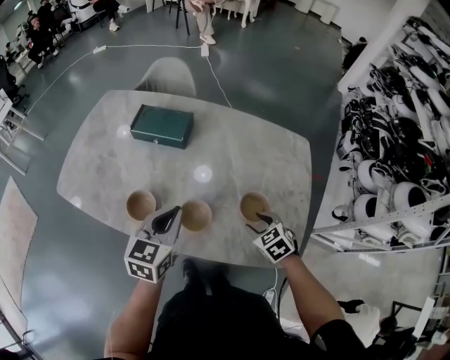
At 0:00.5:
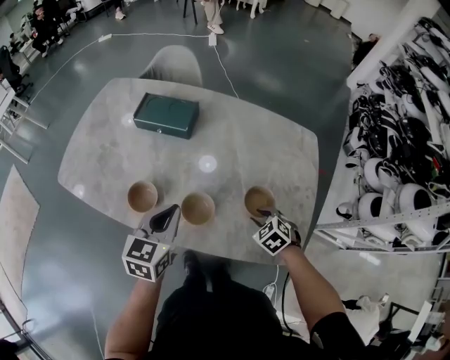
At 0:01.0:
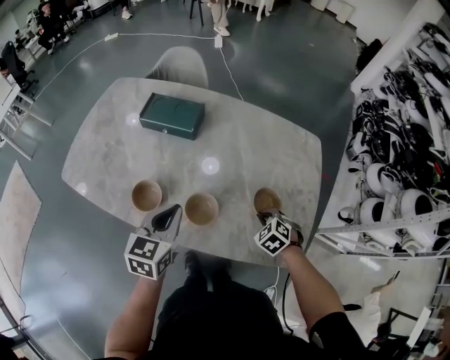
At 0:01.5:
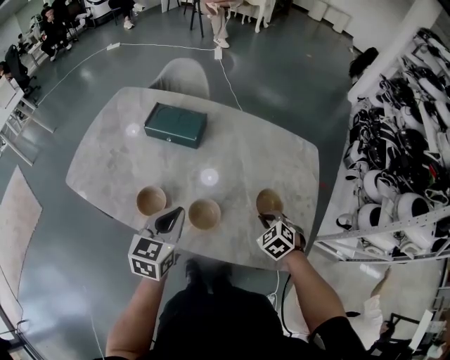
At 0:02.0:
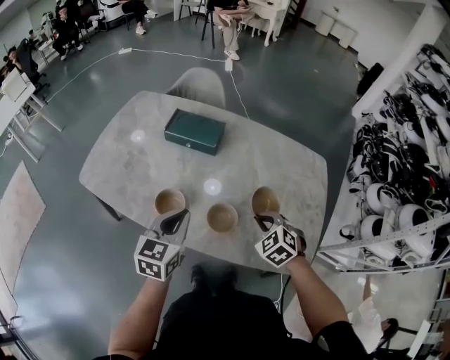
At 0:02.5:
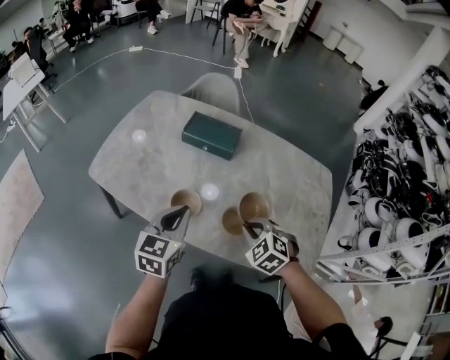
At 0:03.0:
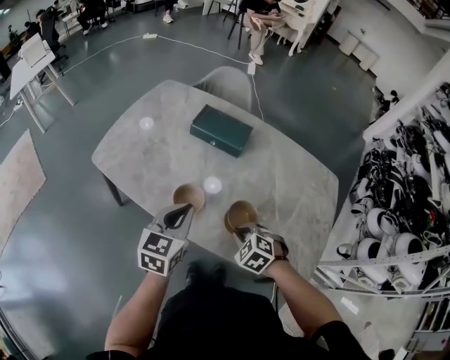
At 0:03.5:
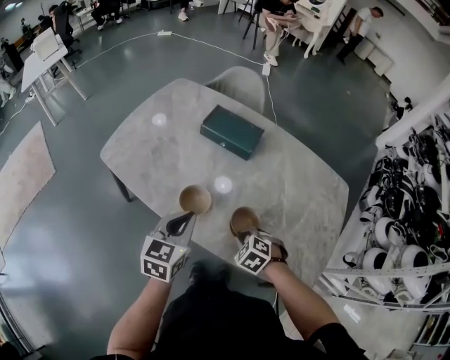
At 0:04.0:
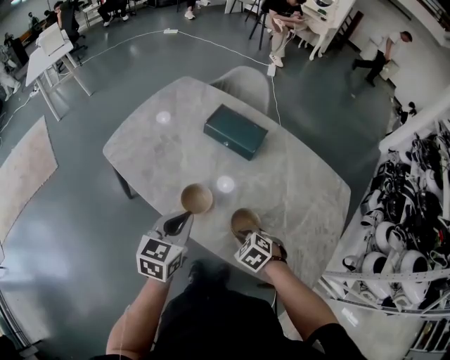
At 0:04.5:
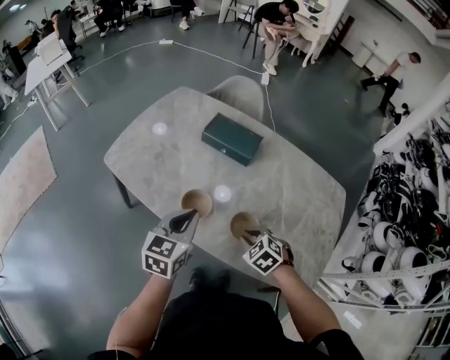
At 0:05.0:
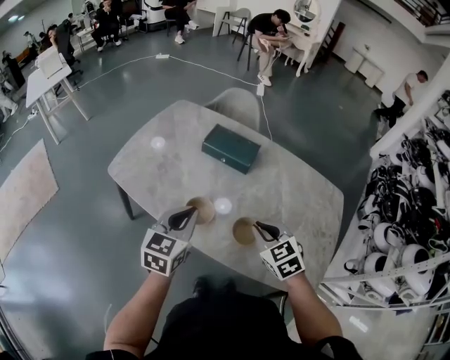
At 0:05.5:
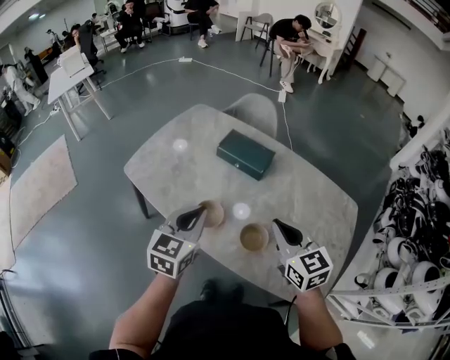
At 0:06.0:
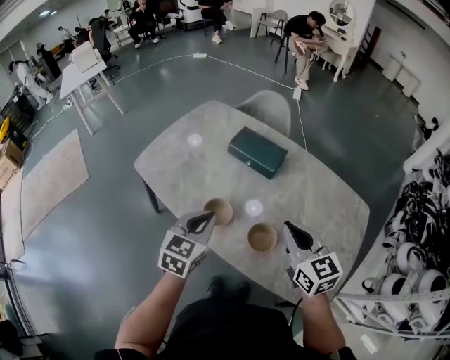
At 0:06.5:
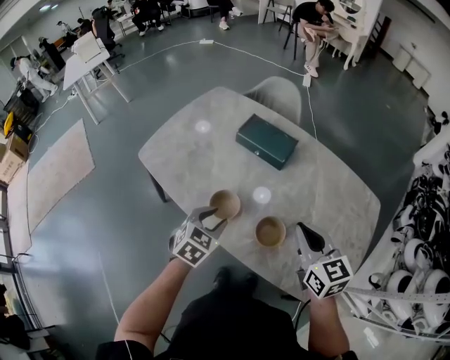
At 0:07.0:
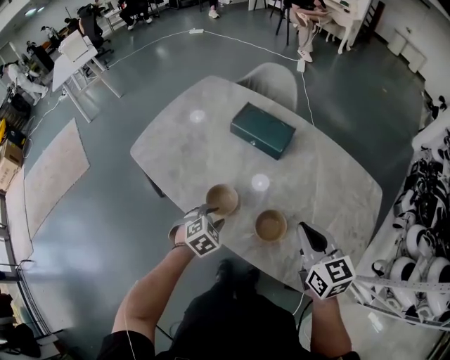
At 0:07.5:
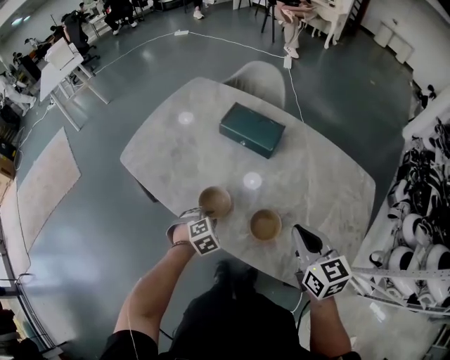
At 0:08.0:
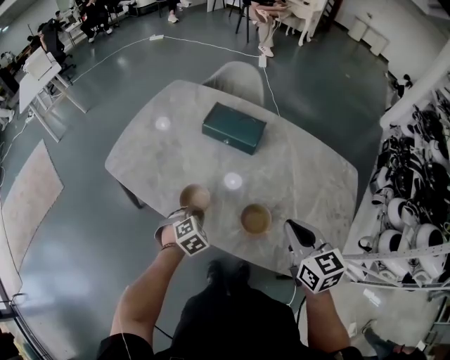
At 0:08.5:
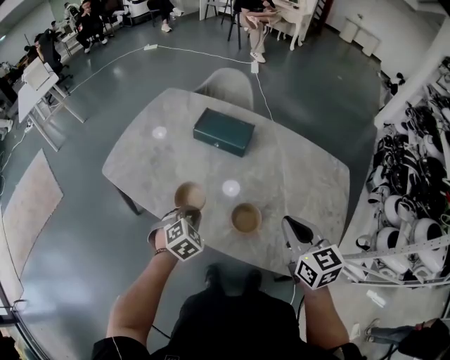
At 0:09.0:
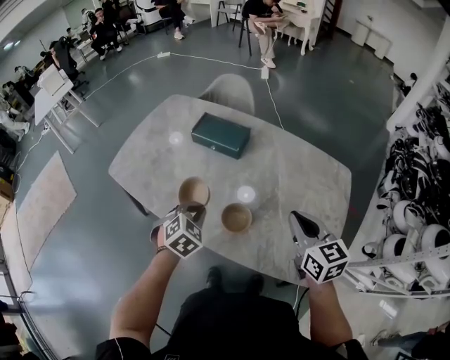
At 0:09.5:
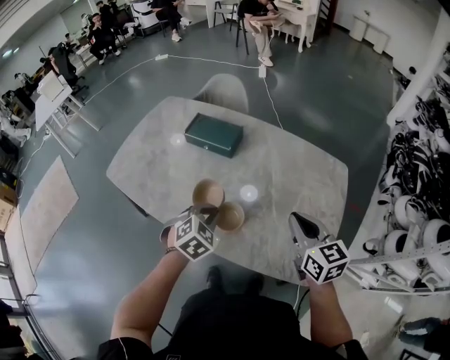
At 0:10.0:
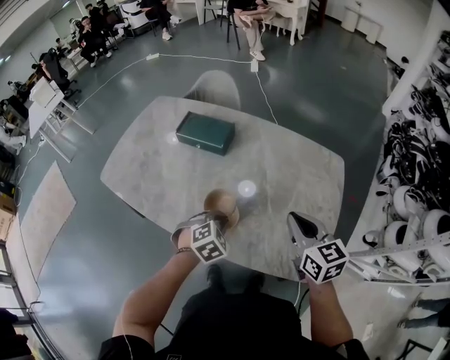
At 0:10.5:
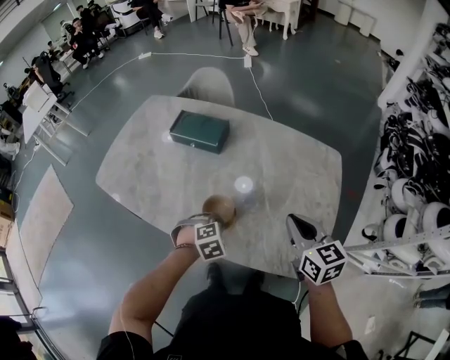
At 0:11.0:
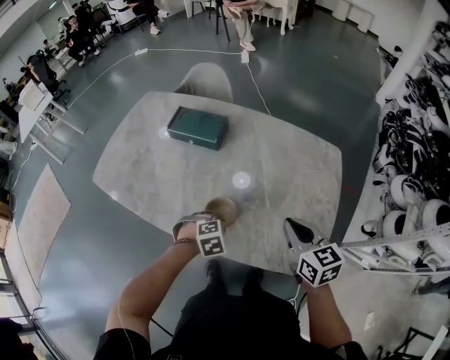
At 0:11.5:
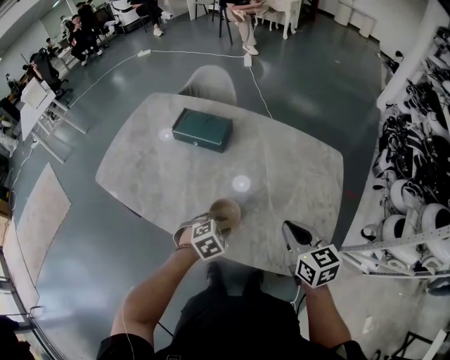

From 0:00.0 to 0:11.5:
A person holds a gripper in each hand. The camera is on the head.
From 0:00.0 to 0:02.0: The right gripper travels to the left and upward by approximately 10 cm, turns by roughly 20 degrees, and closes its fingers. The left gripper goes roughly 10 cm to the left.
From 0:02.0 to 0:04.0: The left gripper moves to the left, approximately 10 cm. Meanwhile the right gripper heads to the left and downward, covering roughly 15 cm, and swivels approximately 20 degrees.
From 0:04.0 to 0:06.0: The right gripper travels upward by about 25 cm, and tips its fingers upward by some 50 degrees.
From 0:06.0 to 0:07.5: The left gripper is displaced downward by approximately 25 cm, points its fingers about 40 degrees further downward, and opens its fingers, while the right gripper travels downward by about 5 cm.
From 0:07.5 to 0:09.5: The left gripper is displaced to the right and upward by approximately 25 cm, and closes its fingers; the right gripper travels to the right by about 15 cm.
From 0:09.5 to 0:11.5: The left gripper travels downward and to the right by about 10 cm, rotates roughly 20 degrees, and opens its fingers. The right gripper is displaced downward by some 5 cm.

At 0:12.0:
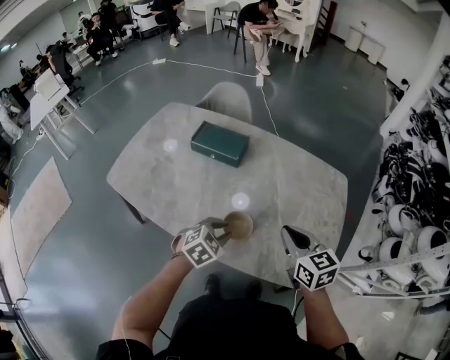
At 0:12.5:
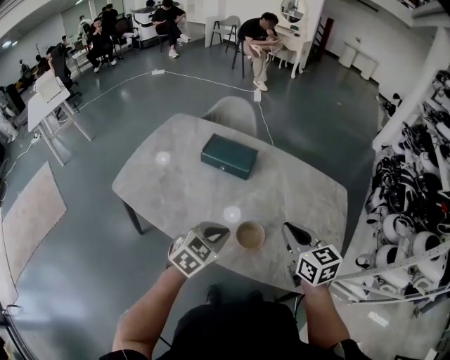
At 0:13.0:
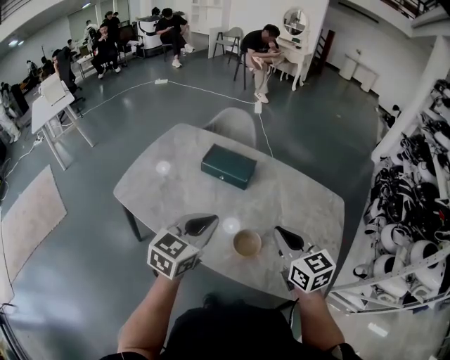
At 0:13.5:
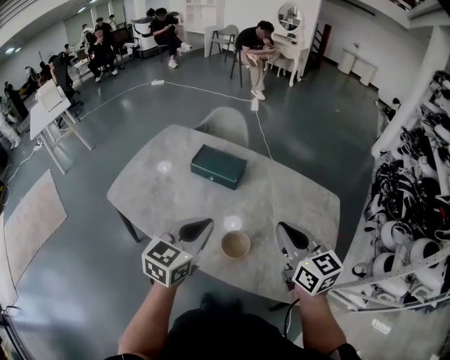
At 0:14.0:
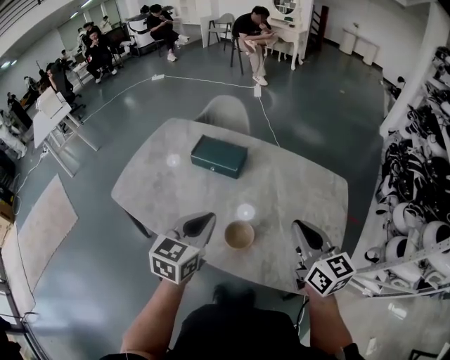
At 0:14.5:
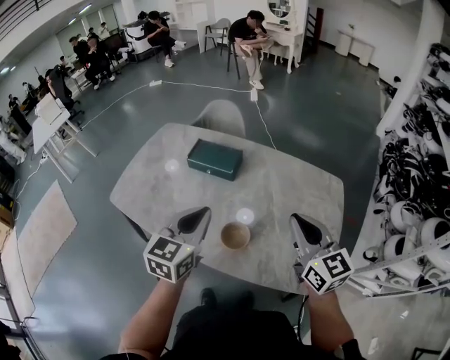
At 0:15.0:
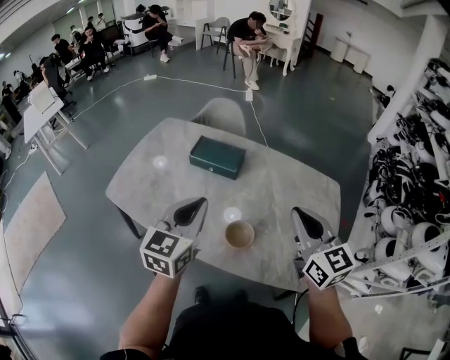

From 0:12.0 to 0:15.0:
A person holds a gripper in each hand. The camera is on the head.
From 0:12.0 to 0:13.5: The left gripper goes about 20 cm upward, tilts its fingers approximately 40 degrees upward, and closes up, while the right gripper goes some 10 cm upward.

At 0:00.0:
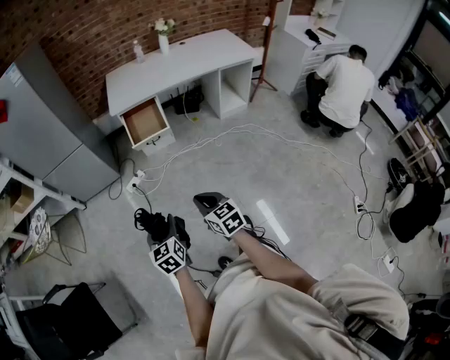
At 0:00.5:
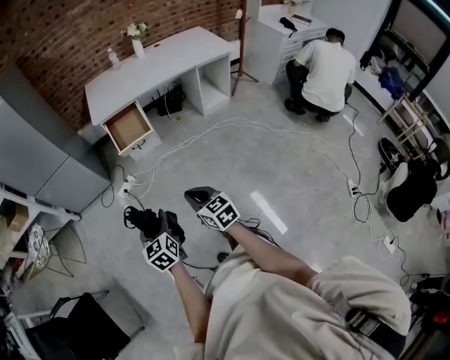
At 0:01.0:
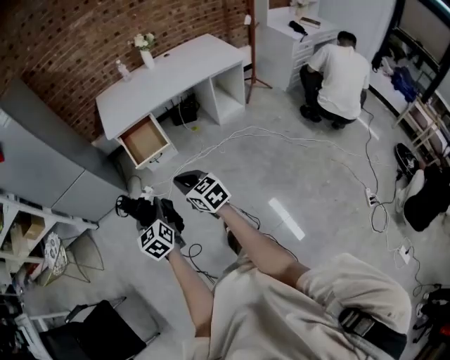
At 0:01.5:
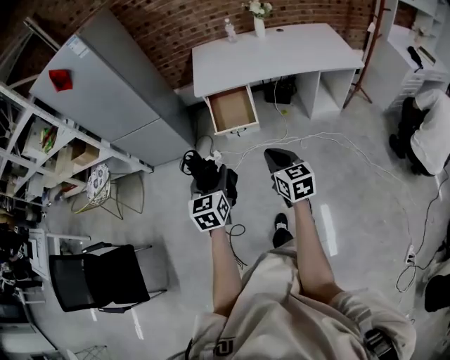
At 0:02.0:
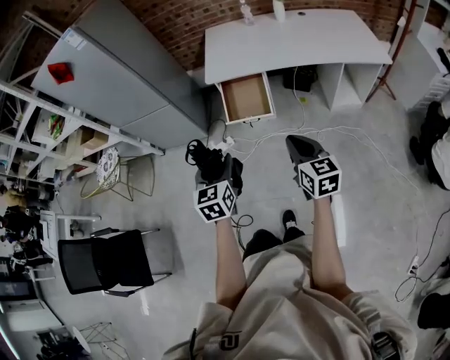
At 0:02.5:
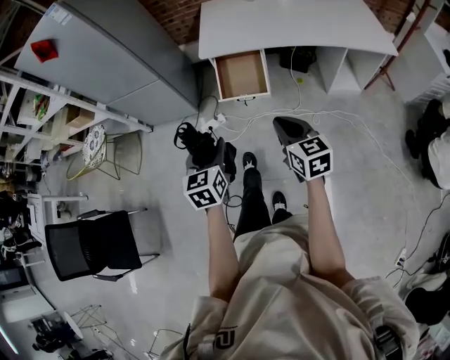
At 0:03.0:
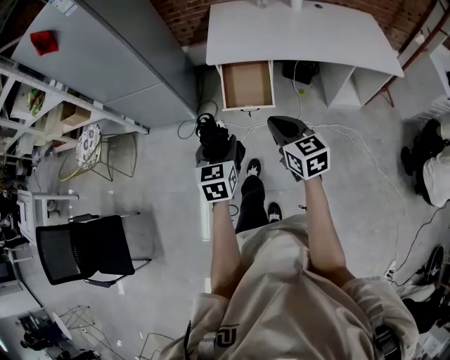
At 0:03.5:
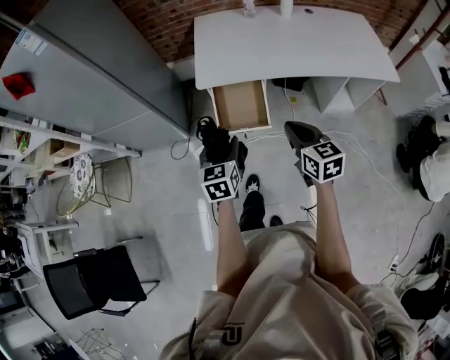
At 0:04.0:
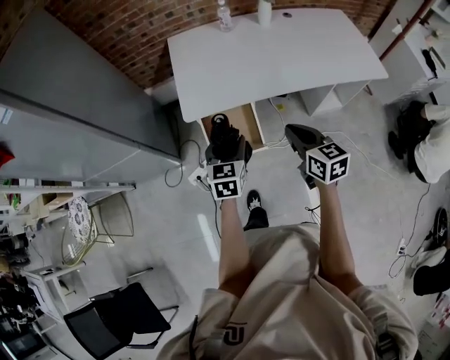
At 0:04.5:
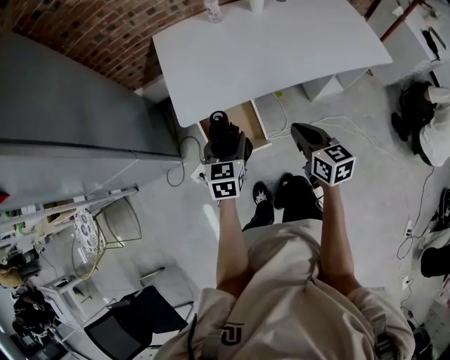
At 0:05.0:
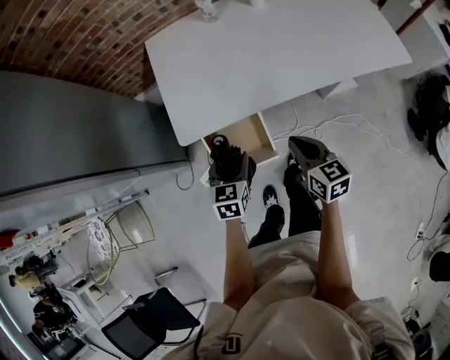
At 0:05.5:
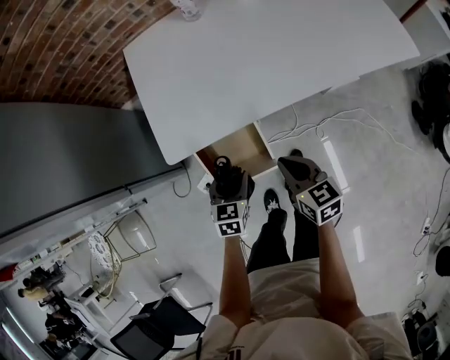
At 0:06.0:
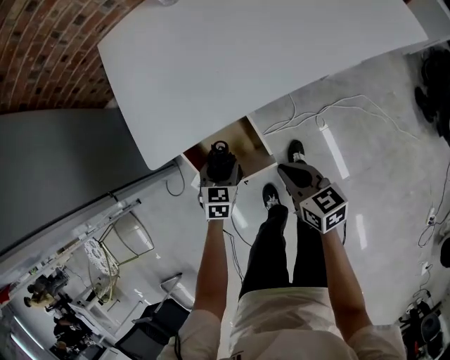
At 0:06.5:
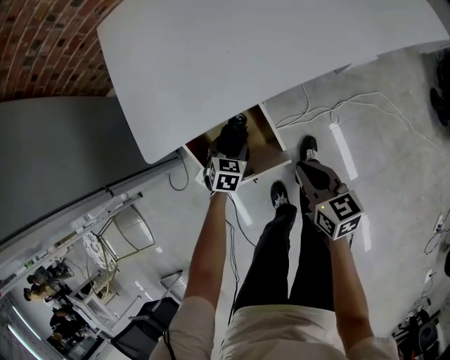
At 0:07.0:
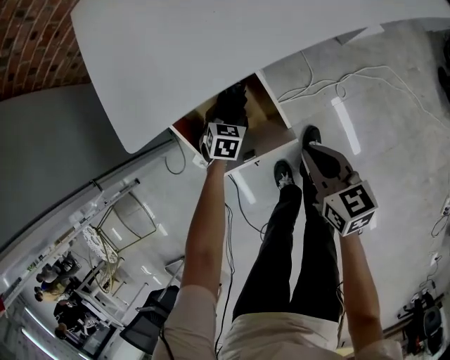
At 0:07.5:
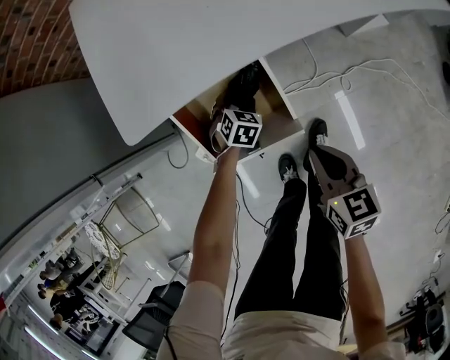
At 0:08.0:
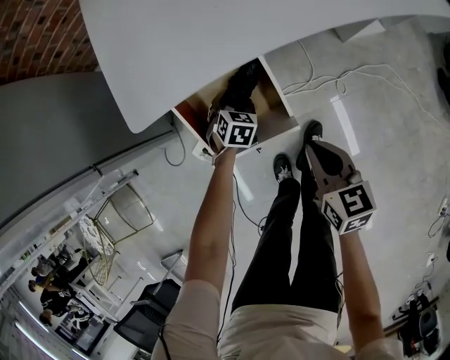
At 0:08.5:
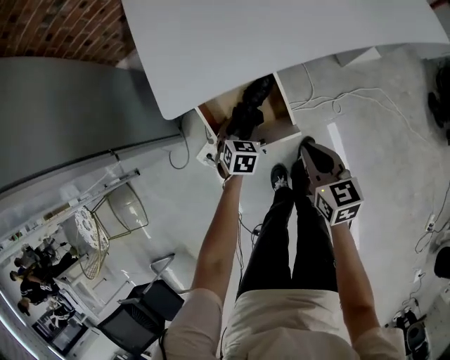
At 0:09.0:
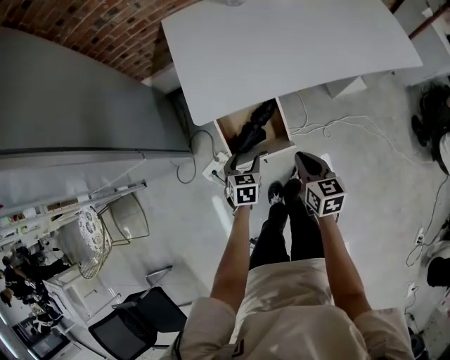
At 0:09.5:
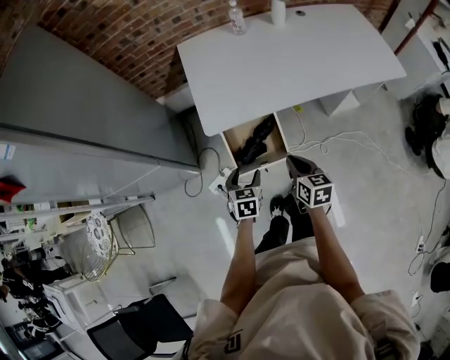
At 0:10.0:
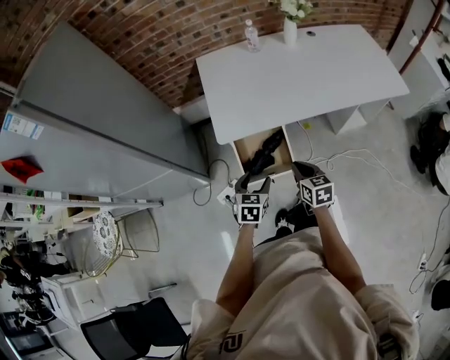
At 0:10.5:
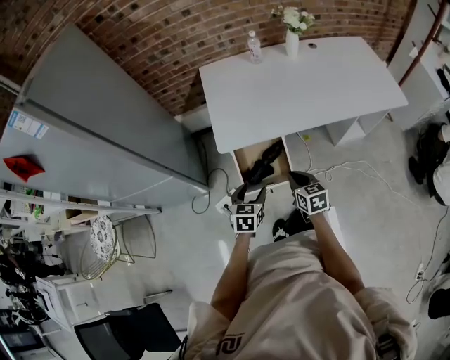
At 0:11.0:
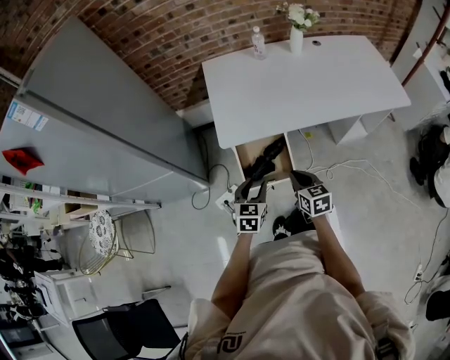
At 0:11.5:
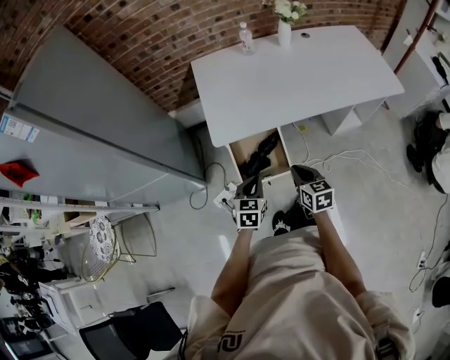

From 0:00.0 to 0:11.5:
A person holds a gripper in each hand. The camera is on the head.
From 0:00.0 to 0:02.0: The right gripper goes approximately 30 cm forward and to the right, while the left gripper is displaced forward by about 25 cm.
From 0:02.0 to 0:04.0: The grippers both shift forward by some 35 cm. The left gripper turns by roughly 20 degrees.
From 0:04.0 to 0:06.0: The two grippers go approximately 30 cm downward. The left gripper changes its angle by about 30 degrees.
From 0:06.0 to 0:07.5: The right gripper travels downward by roughly 10 cm; the left gripper moves downward, some 15 cm.
From 0:07.5 to 0:09.5: The right gripper goes some 20 cm upward. Meanwhile the left gripper travels upward and backward by approximately 40 cm, and swivels some 40 degrees.
From 0:09.5 to 0:11.5: The left gripper moves upward, roughly 5 cm, and closes its fingers.
